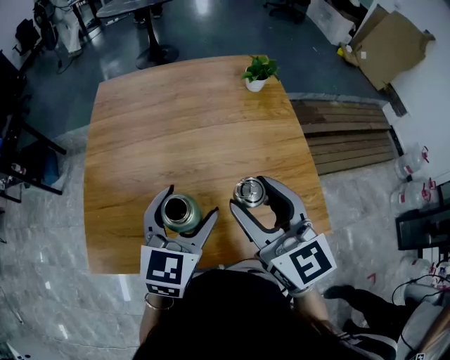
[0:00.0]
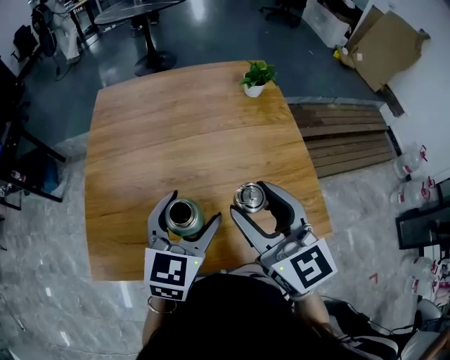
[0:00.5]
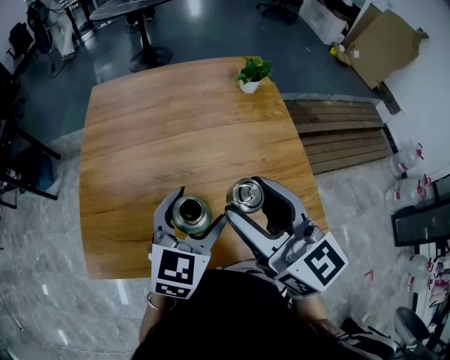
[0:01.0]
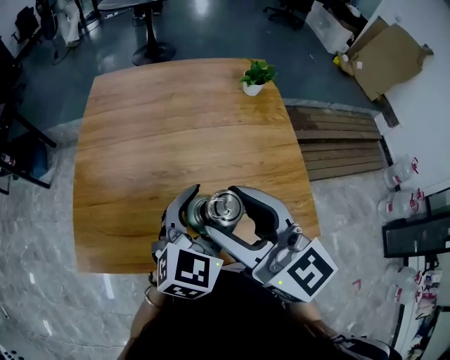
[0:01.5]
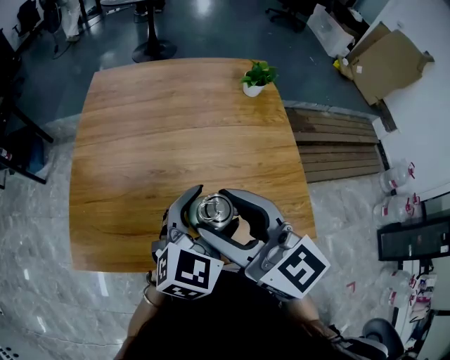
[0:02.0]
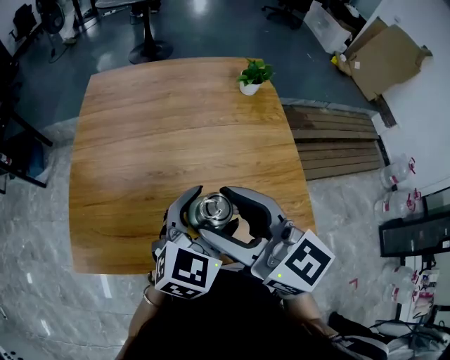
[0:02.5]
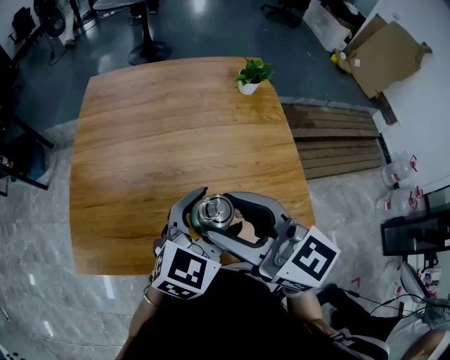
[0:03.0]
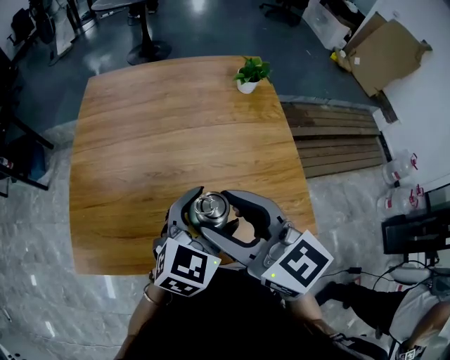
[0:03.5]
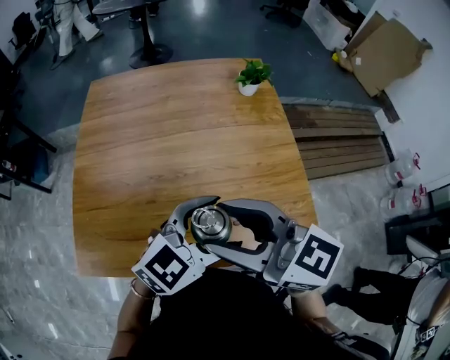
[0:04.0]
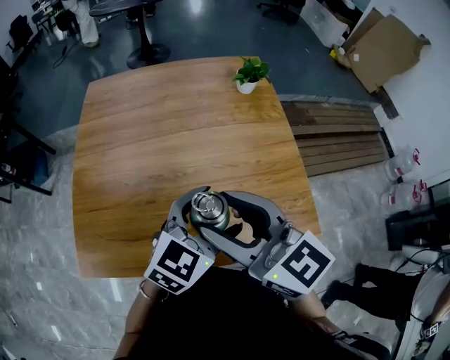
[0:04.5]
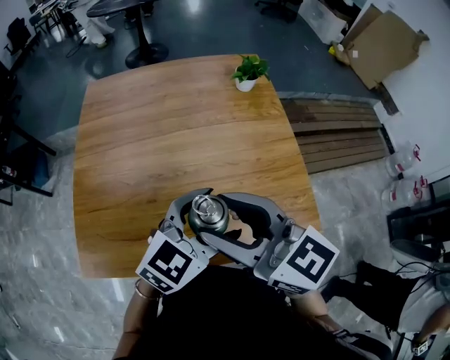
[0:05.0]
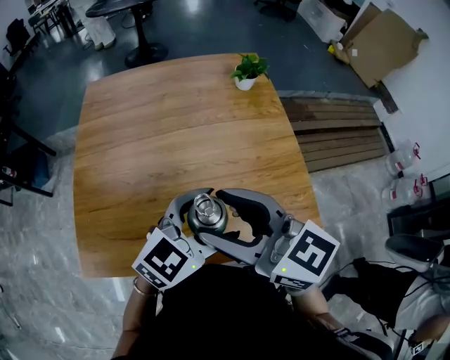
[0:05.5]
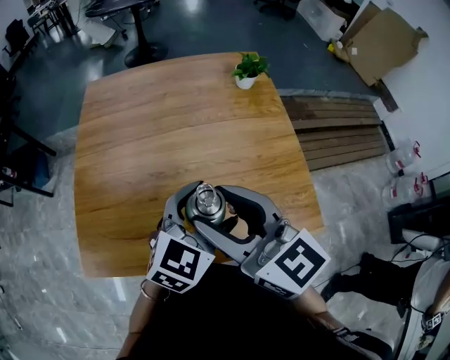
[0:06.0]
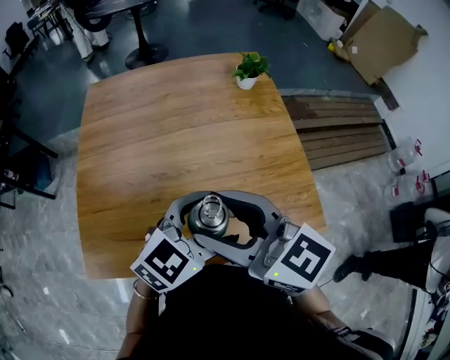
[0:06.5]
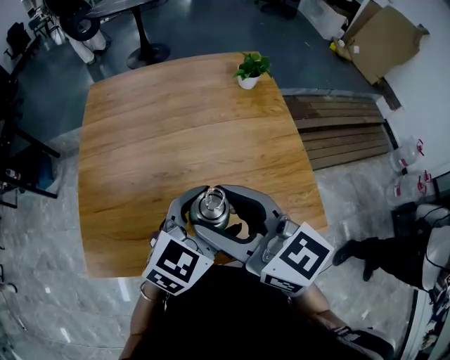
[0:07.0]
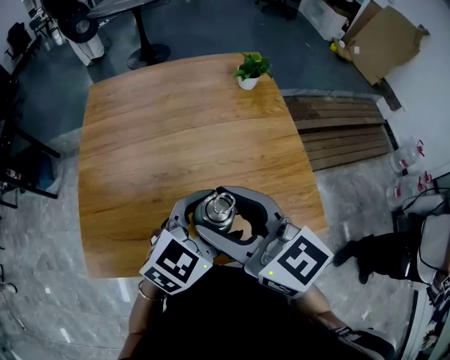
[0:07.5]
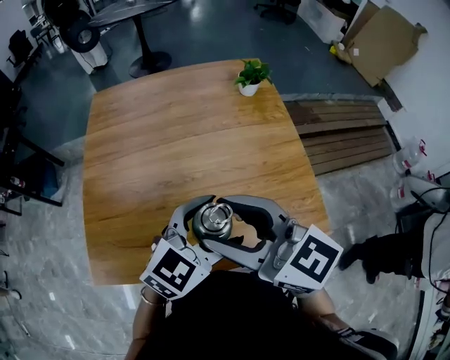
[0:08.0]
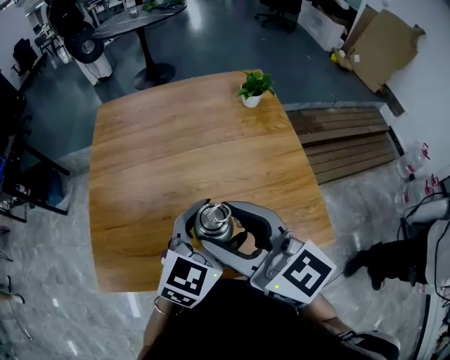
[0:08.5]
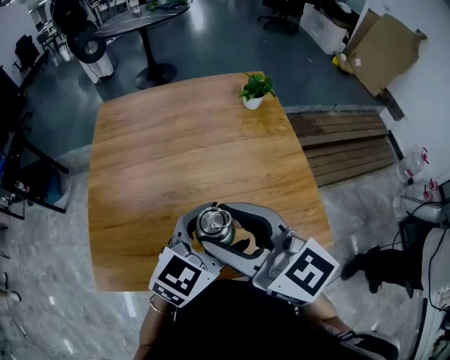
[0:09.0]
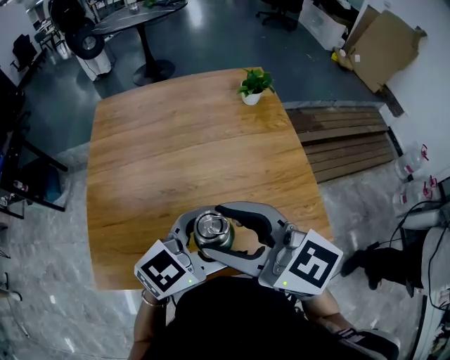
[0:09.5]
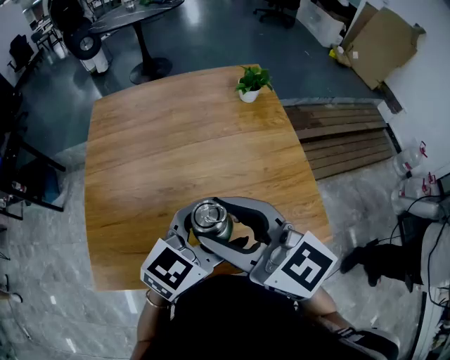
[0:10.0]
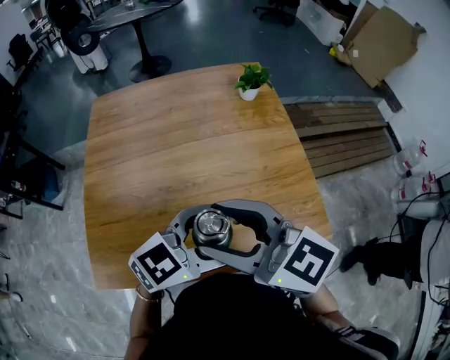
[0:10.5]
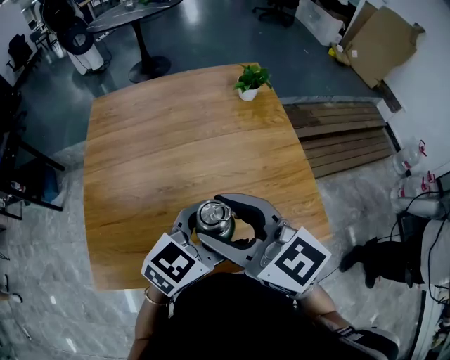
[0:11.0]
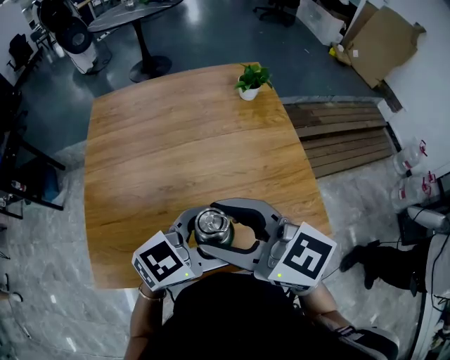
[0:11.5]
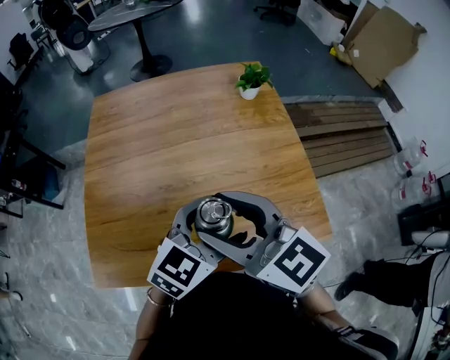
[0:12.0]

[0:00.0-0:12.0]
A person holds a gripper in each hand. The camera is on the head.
0:00.0 to 0:02.0: The right gripper is displaced to the left by roughly 5 cm, while the left gripper heads to the right, covering about 5 cm.
0:02.0 to 0:04.0: The left gripper rotates roughly 30 degrees.
0:04.0 to 0:06.0: The grippers stay close to where they were, moving slightly.
0:08.0 to 0:12.0: There are only small adjustments of the grippers.

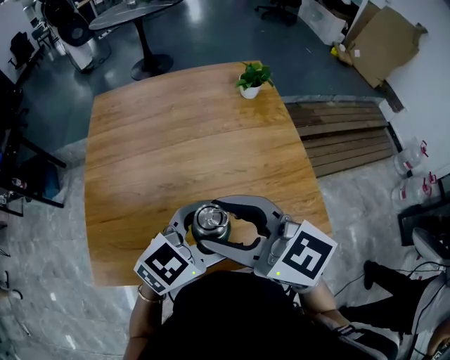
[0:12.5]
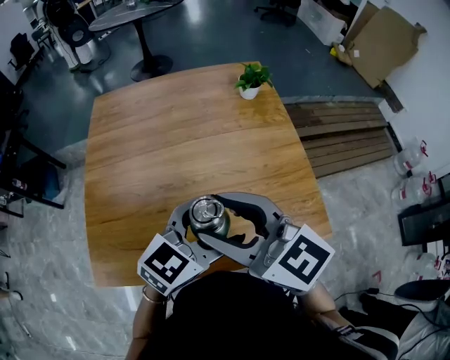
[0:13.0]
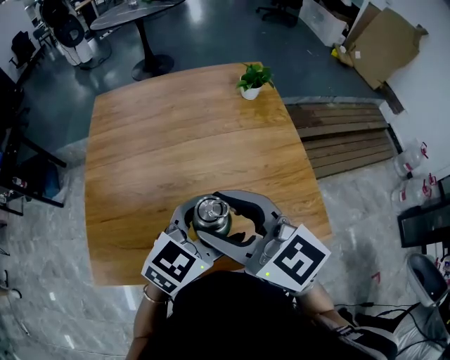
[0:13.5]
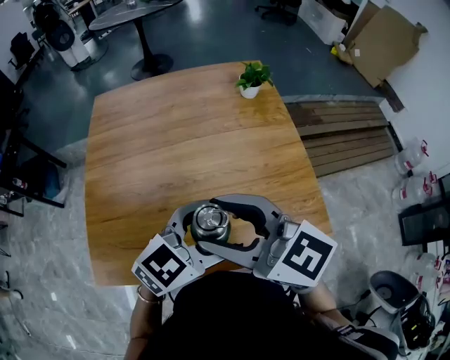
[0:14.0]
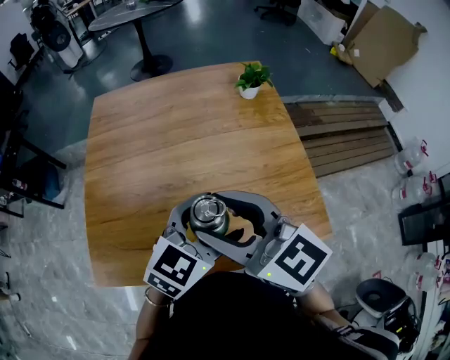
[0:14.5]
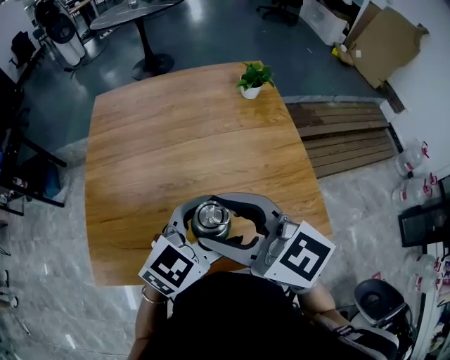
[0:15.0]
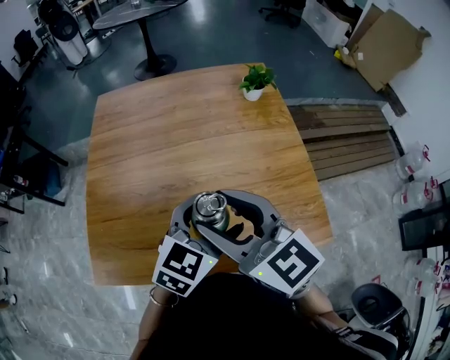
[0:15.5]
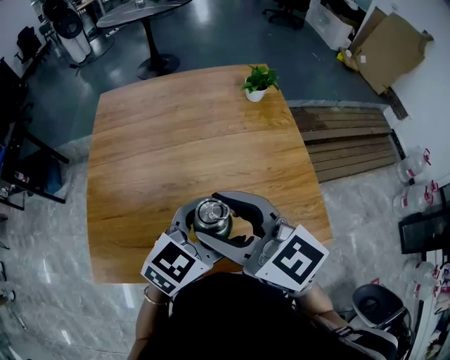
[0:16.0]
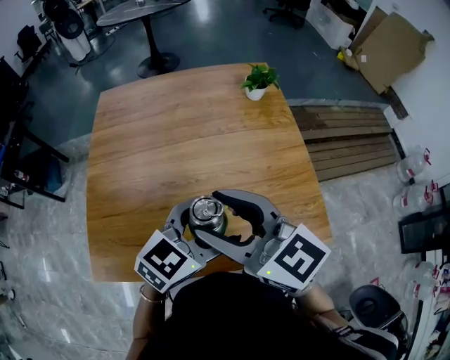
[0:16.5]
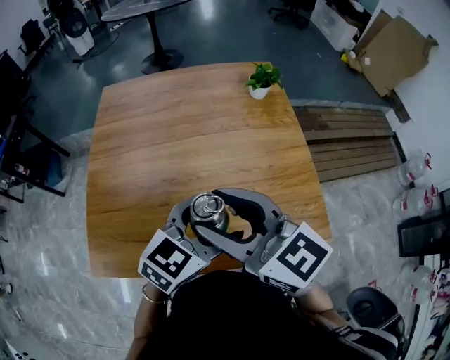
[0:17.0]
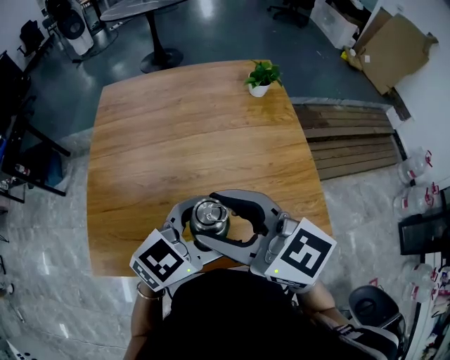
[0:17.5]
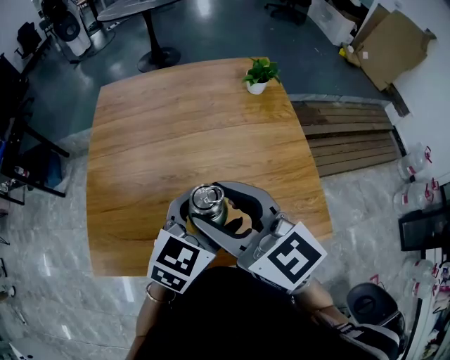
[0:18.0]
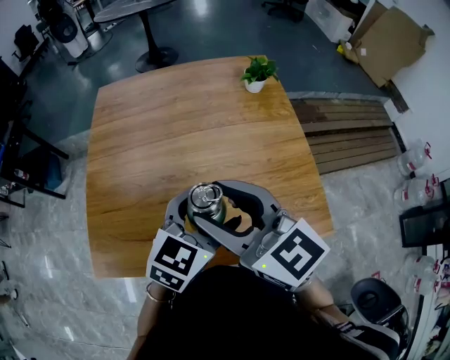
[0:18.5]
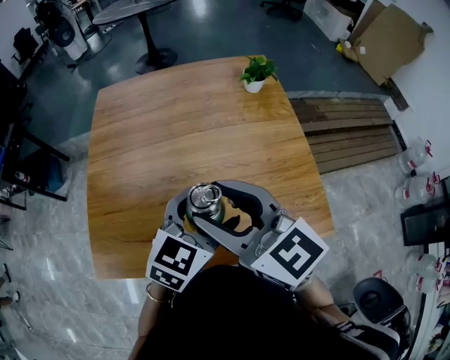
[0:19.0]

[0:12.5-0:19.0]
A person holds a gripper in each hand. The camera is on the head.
0:12.5 to 0:14.5: The grippers stay close to where they were, moving slightly.
0:14.5 to 0:19.0: The grippers stay close to where they were, moving slightly.

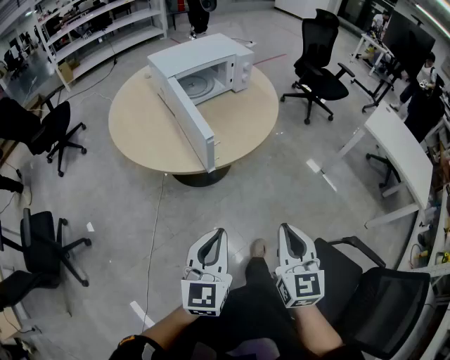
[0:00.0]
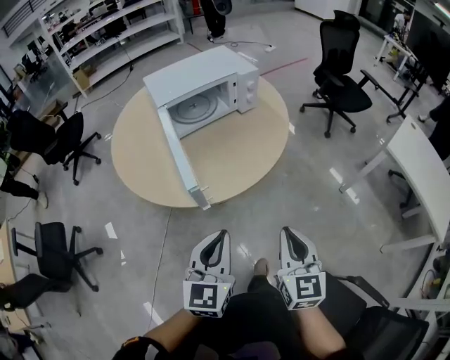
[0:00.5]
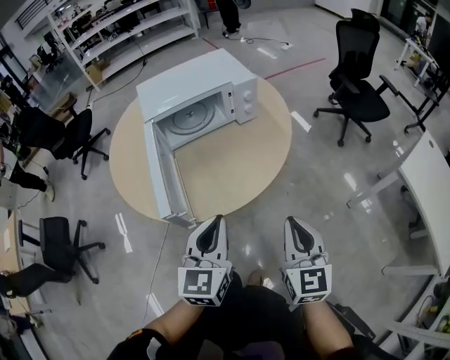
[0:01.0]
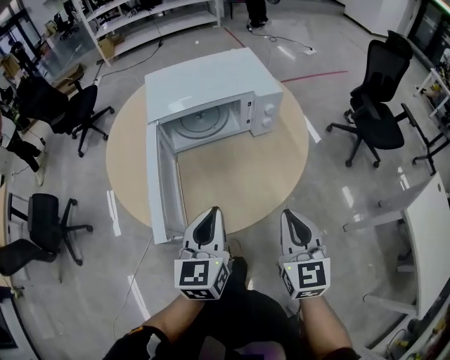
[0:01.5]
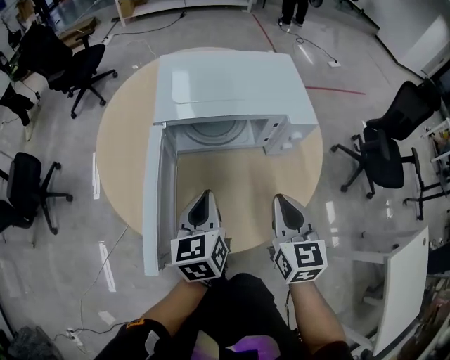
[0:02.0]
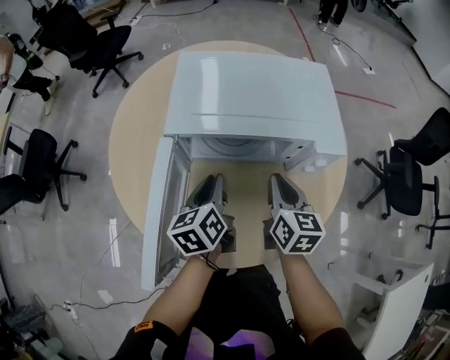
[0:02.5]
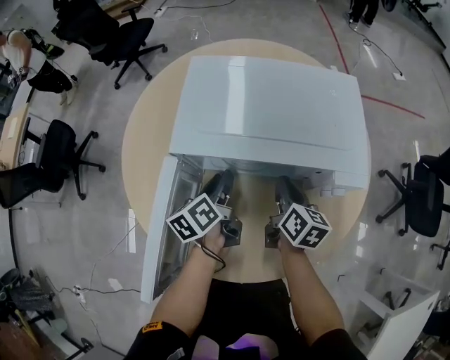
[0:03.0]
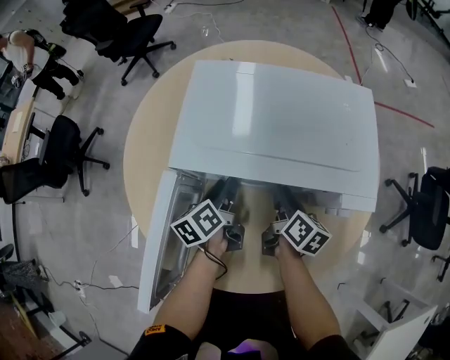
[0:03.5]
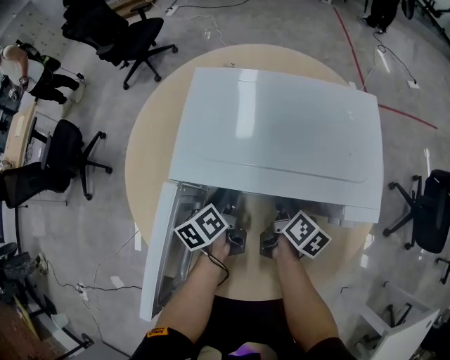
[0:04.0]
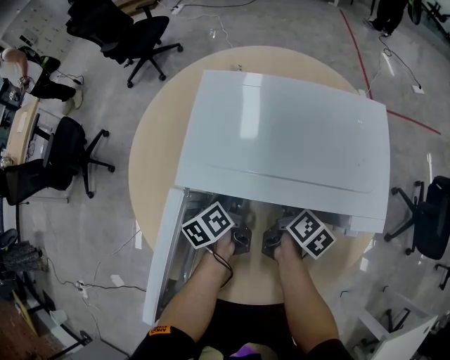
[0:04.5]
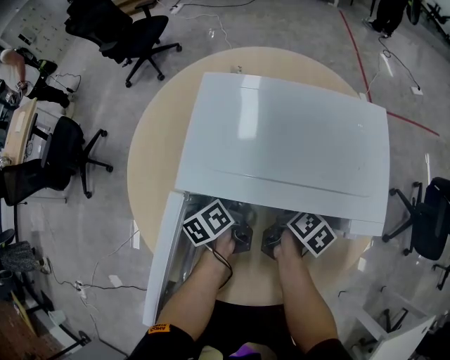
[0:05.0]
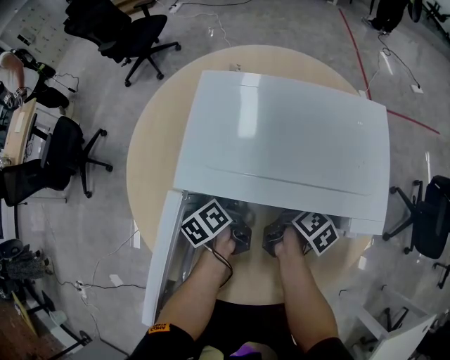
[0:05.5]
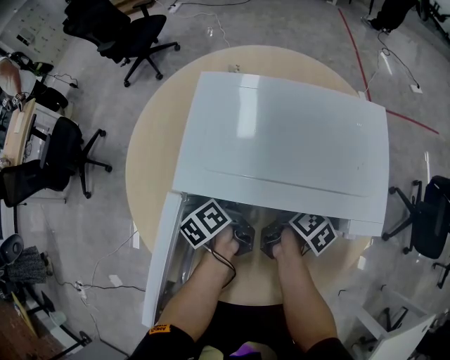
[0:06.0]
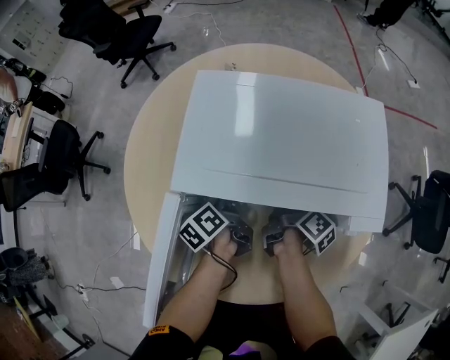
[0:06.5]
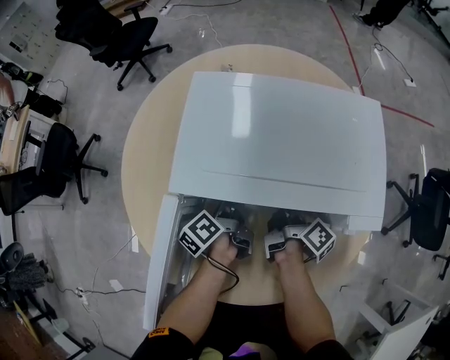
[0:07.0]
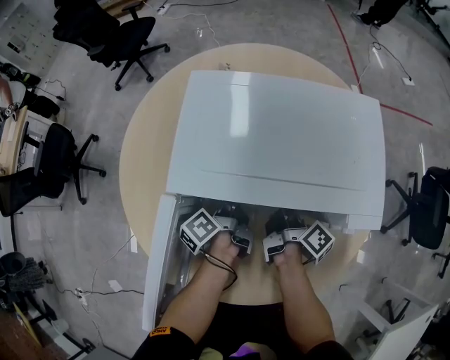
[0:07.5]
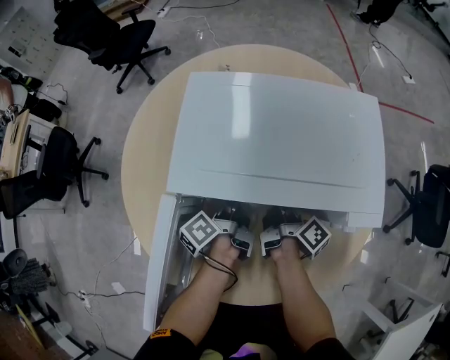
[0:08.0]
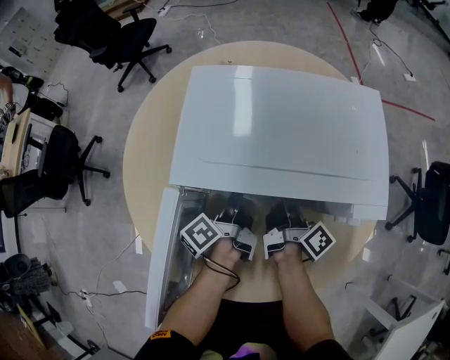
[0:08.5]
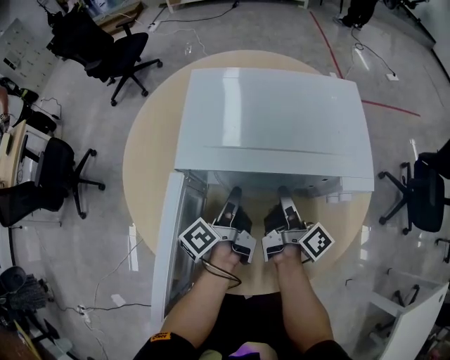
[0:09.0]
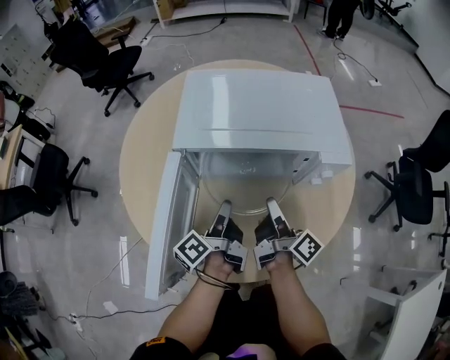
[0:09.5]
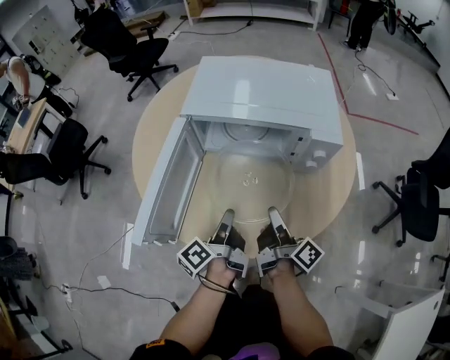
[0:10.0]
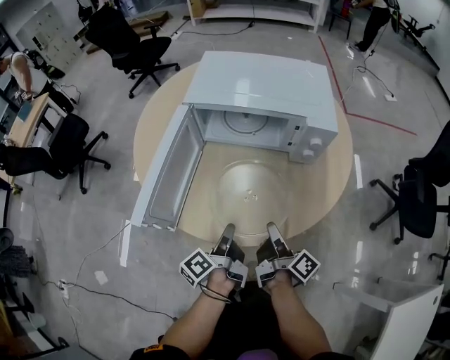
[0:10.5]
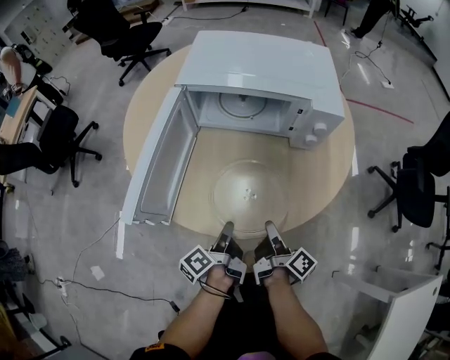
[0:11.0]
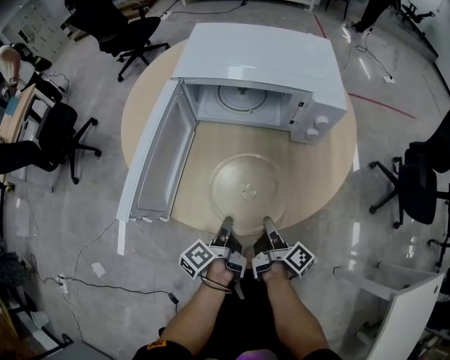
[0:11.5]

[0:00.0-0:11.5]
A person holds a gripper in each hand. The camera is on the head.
0:00.0 to 0:02.0: Both grippers are carried roughly 60 cm. The left gripper changes its angle by some 50 degrees; the right gripper changes its angle by roughly 30 degrees.
0:02.0 to 0:04.0: Both grippers move forward and downward, approximately 30 cm. The left gripper swivels some 40 degrees, and opens. The right gripper rolls clockwise, seen from behind, by approximately 50 degrees.
0:04.0 to 0:06.0: The left gripper closes.
0:06.0 to 0:07.5: The right gripper changes its angle by approximately 30 degrees. Meanwhile the left gripper swivels approximately 20 degrees.
0:07.5 to 0:09.5: Both grippers move backward and upward, approximately 15 cm.
0:09.5 to 0:11.5: Both grippers move backward and downward, about 25 cm.
